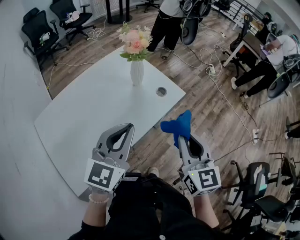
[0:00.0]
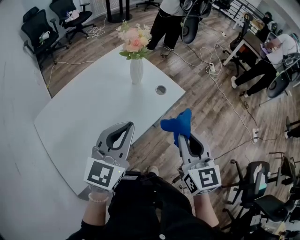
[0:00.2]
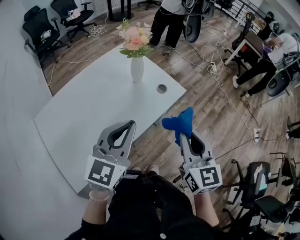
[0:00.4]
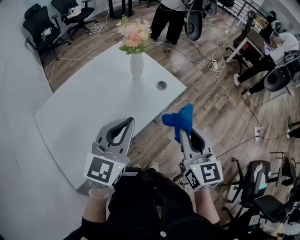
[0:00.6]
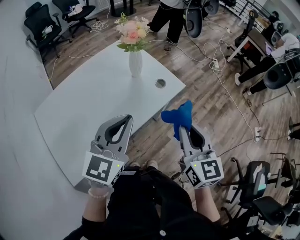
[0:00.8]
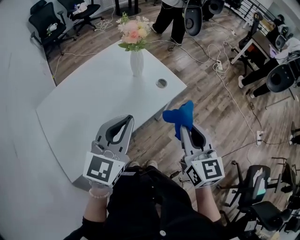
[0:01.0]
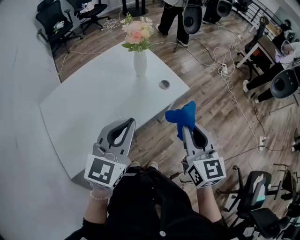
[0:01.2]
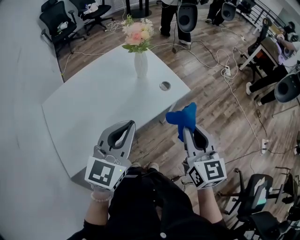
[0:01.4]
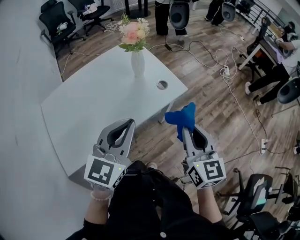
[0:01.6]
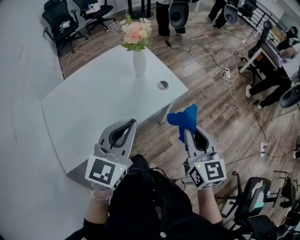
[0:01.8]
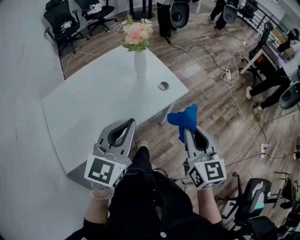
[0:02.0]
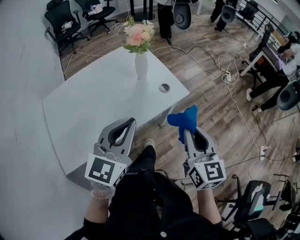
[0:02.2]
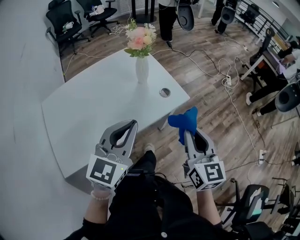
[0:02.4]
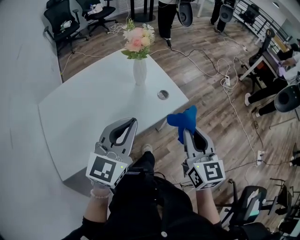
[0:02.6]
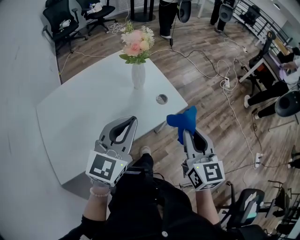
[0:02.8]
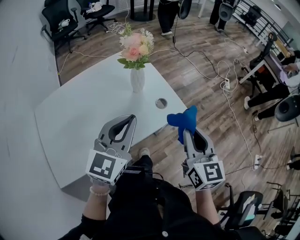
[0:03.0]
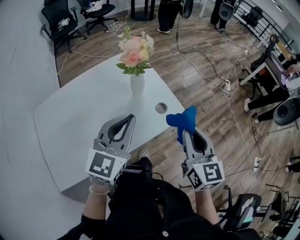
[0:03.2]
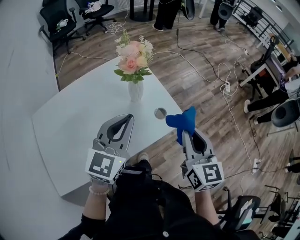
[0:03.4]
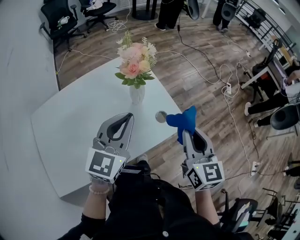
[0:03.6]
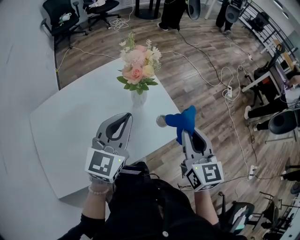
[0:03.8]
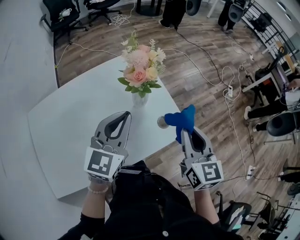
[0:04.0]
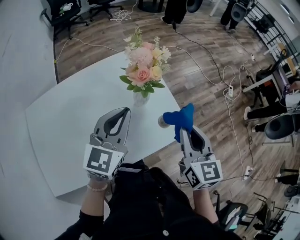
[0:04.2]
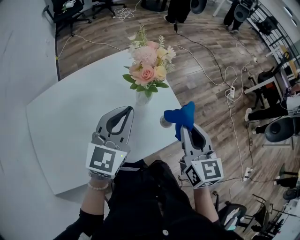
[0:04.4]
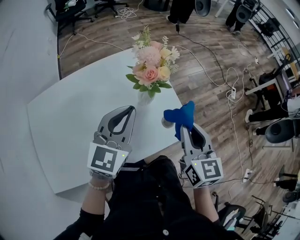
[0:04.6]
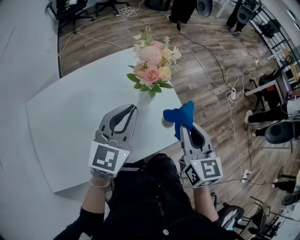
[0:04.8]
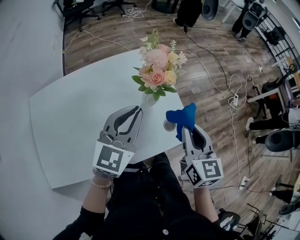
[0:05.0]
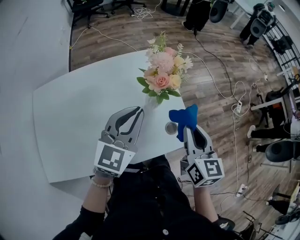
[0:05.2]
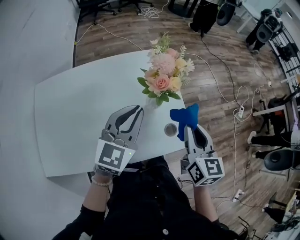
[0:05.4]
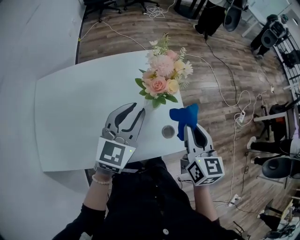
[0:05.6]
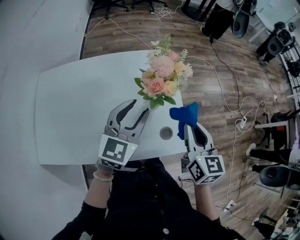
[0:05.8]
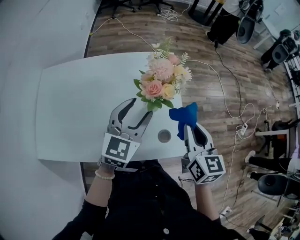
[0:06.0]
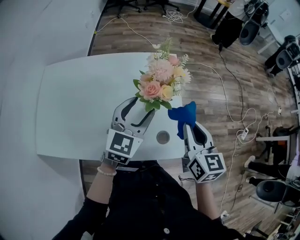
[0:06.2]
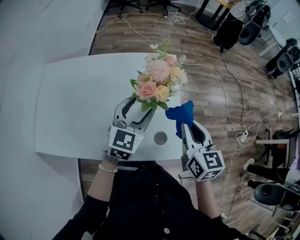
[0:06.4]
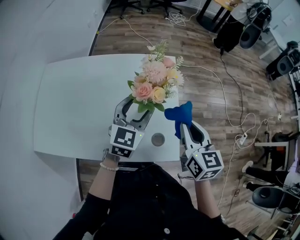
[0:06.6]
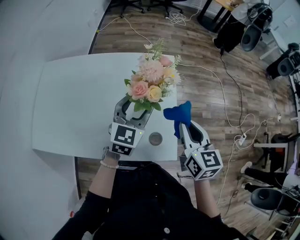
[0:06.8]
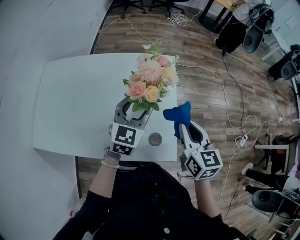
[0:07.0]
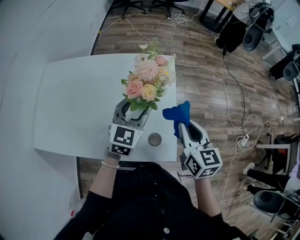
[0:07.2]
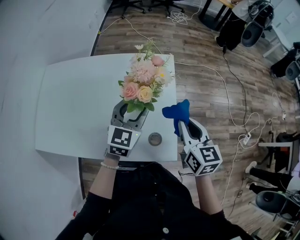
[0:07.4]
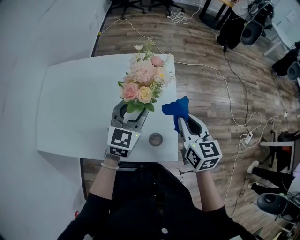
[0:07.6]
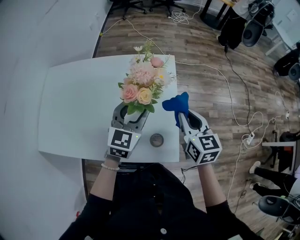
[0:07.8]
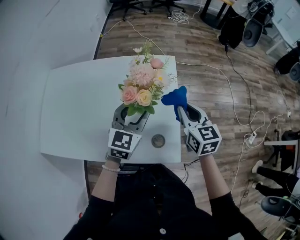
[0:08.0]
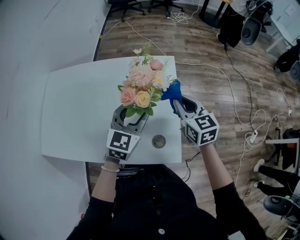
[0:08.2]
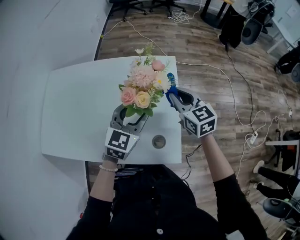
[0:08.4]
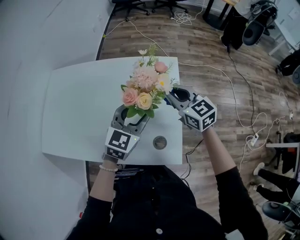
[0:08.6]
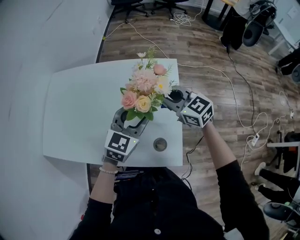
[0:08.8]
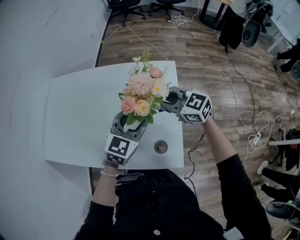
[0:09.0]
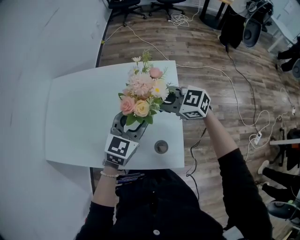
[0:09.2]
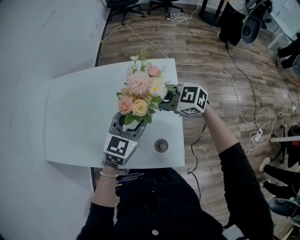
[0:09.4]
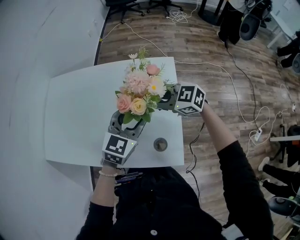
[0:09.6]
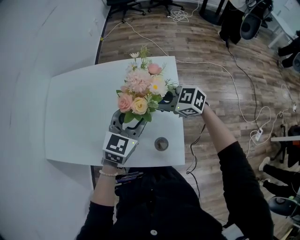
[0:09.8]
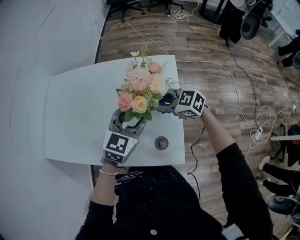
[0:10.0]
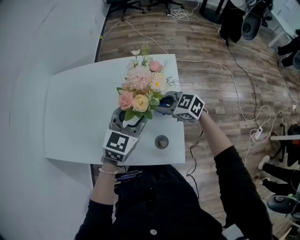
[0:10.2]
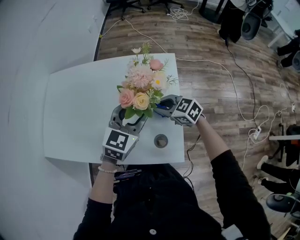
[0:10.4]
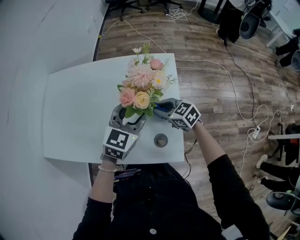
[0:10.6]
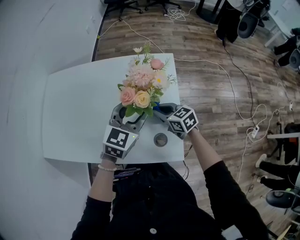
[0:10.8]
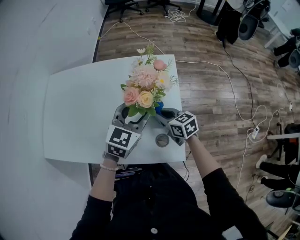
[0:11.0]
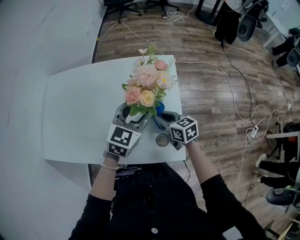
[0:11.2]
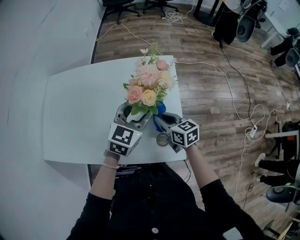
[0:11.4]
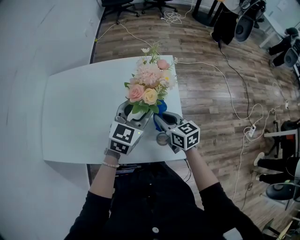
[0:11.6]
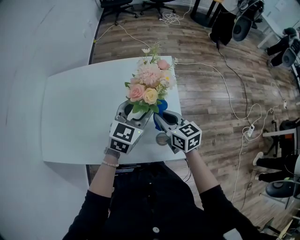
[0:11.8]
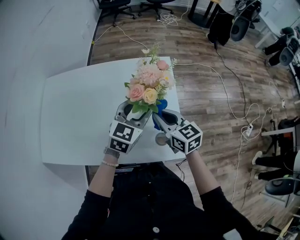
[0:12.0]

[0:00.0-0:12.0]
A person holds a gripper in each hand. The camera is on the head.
0:00.0 to 0:01.6: The two grippers go some 5 cm to the right.
0:01.6 to 0:03.0: The grippers both shift forward by approximately 10 cm.
0:03.0 to 0:04.4: Both grippers travel together forward, about 15 cm.
0:04.4 to 0:06.0: The right gripper moves forward, roughly 10 cm. Meanwhile the left gripper moves forward, roughly 5 cm, and opens its fingers.
0:06.0 to 0:07.6: The left gripper changes place by approximately 5 cm; the right gripper ends up approximately 5 cm from where it was.
0:07.6 to 0:09.0: The right gripper is displaced to the left and forward by about 15 cm, and turns by roughly 50 degrees.
0:09.0 to 0:10.4: The right gripper moves downward, some 10 cm.
0:10.4 to 0:12.0: The right gripper travels upward by about 10 cm, and swivels approximately 40 degrees.

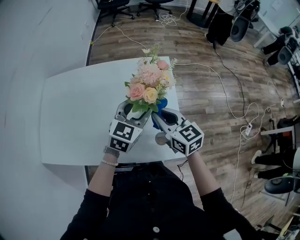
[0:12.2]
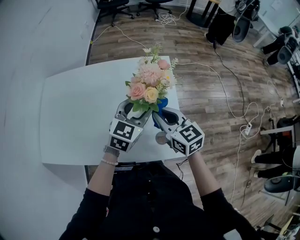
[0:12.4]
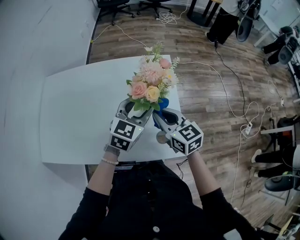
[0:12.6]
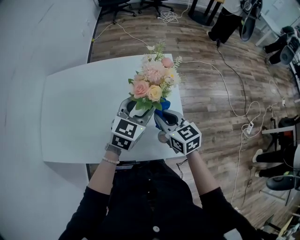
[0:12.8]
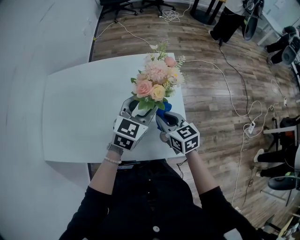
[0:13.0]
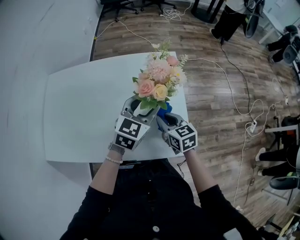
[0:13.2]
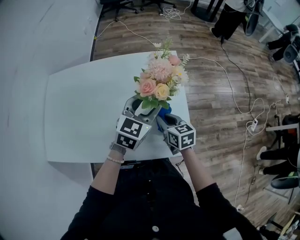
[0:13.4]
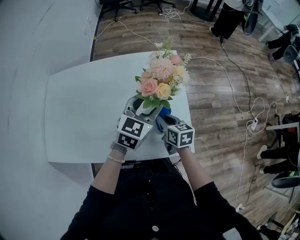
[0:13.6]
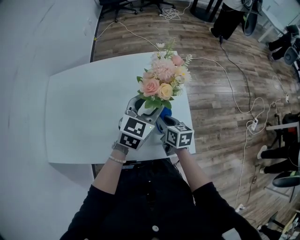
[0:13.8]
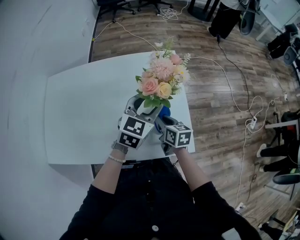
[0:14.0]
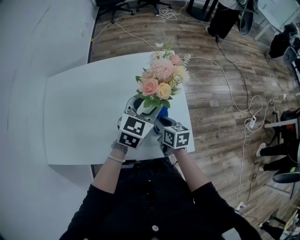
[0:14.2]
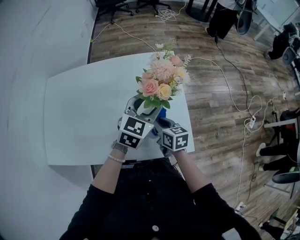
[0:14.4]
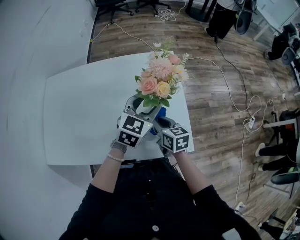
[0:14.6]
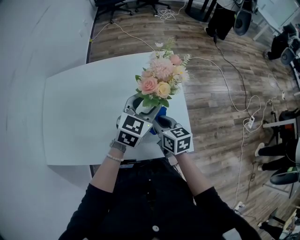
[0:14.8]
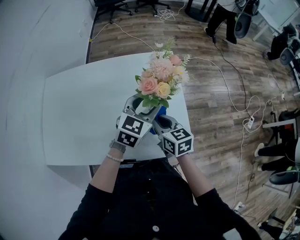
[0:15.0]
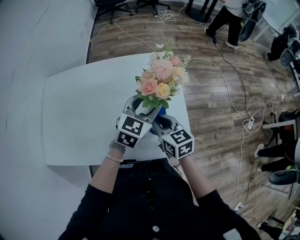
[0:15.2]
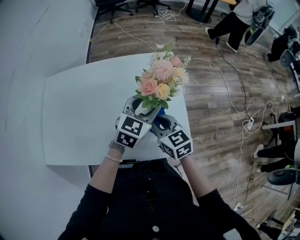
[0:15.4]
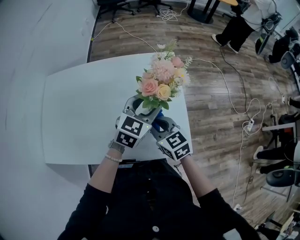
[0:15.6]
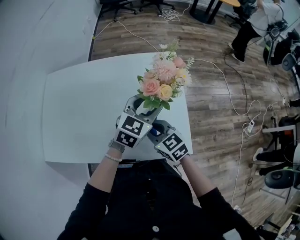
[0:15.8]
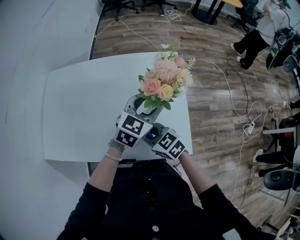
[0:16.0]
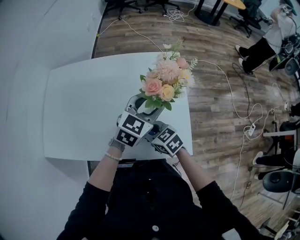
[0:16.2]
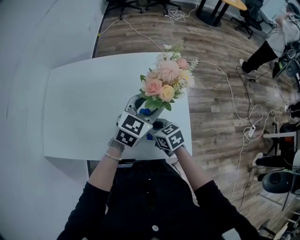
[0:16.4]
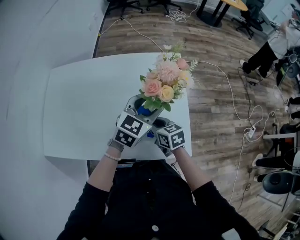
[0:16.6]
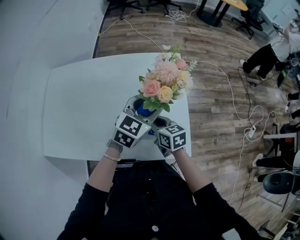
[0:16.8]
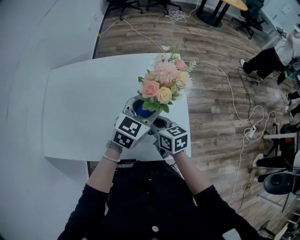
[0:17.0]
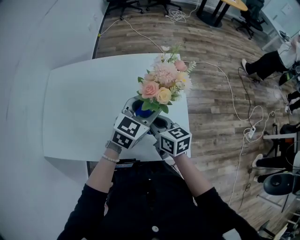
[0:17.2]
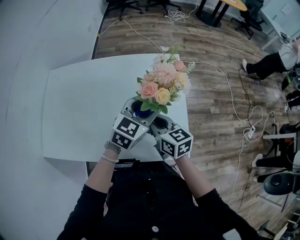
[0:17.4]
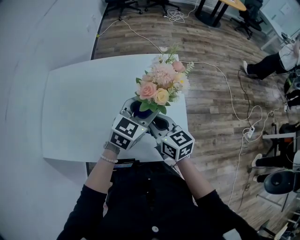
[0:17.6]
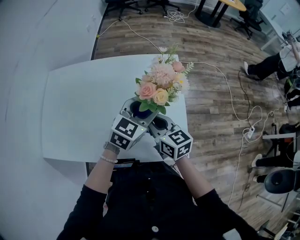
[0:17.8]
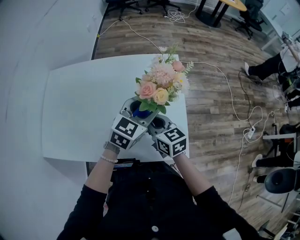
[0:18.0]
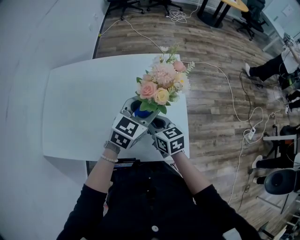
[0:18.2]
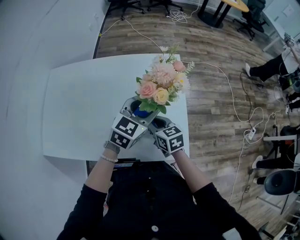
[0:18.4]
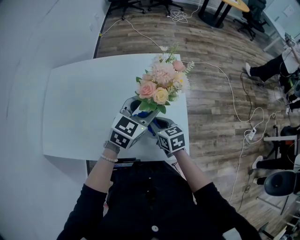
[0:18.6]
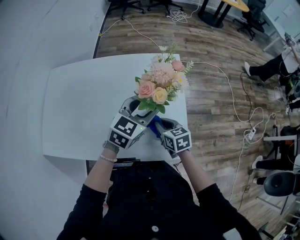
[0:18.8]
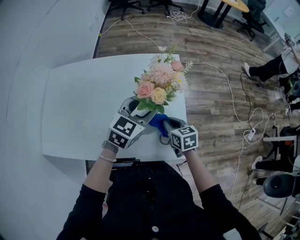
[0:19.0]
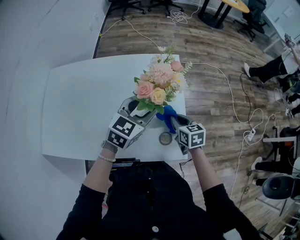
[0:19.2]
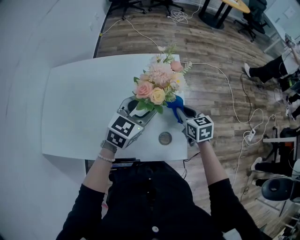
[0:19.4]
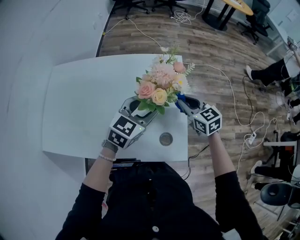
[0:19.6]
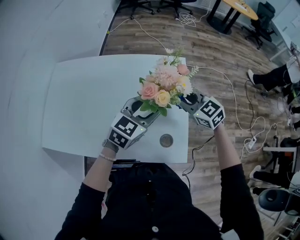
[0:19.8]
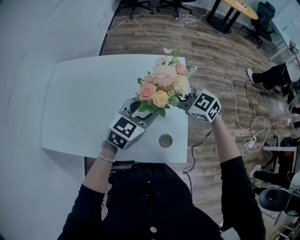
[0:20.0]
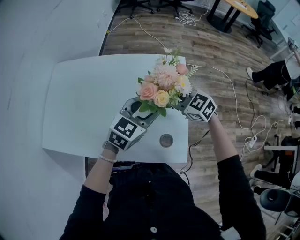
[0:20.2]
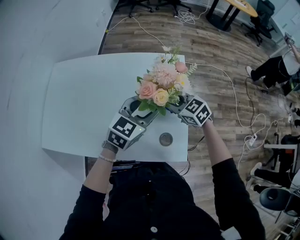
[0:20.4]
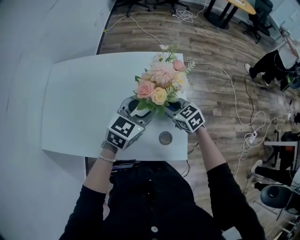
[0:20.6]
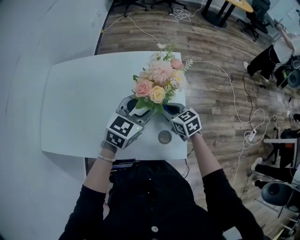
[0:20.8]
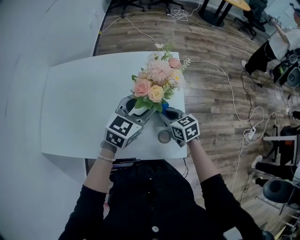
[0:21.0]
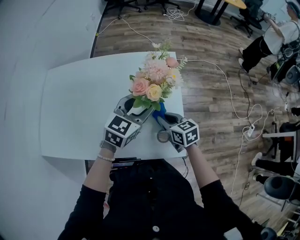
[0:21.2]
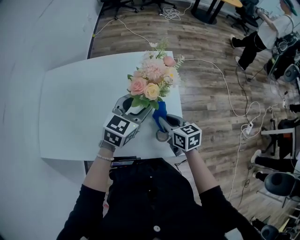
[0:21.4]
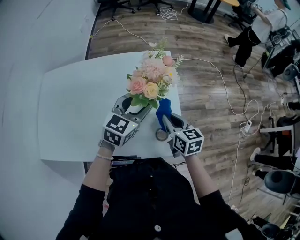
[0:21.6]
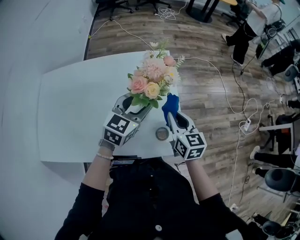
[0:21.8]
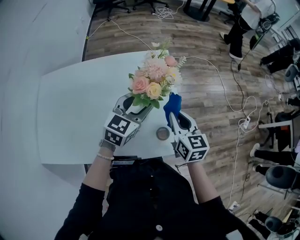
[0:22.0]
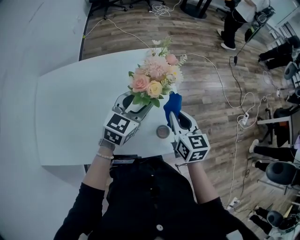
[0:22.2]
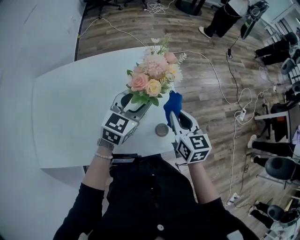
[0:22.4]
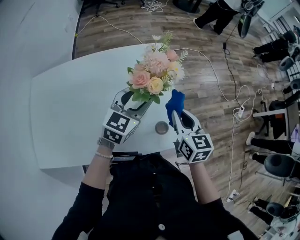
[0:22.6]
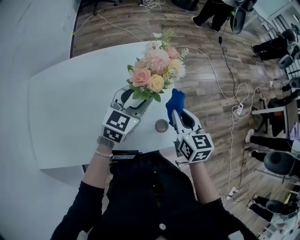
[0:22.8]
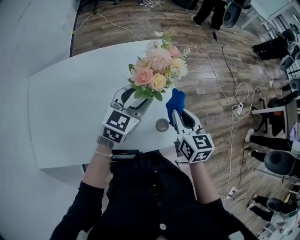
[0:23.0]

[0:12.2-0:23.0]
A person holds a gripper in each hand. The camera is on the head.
0:12.2 to 0:13.8: The right gripper travels downward by approximately 15 cm, and rotates about 30 degrees.
0:13.8 to 0:15.2: The right gripper is displaced upward by about 10 cm, and turns by approximately 20 degrees.
0:15.2 to 0:16.8: The right gripper is displaced downward by roughly 5 cm.
0:16.8 to 0:18.4: The right gripper travels upward and back again, some 10 cm each way.
0:18.4 to 0:20.0: The right gripper goes approximately 15 cm upward, forward and to the right, and rotates some 40 degrees.
0:20.0 to 0:21.4: The right gripper shifts approximately 10 cm backward and downward, and twists approximately 40 degrees clockwise, seen from behind.
0:21.4 to 0:23.0: The right gripper heads upward, covering some 10 cm, and rotates roughly 30 degrees.

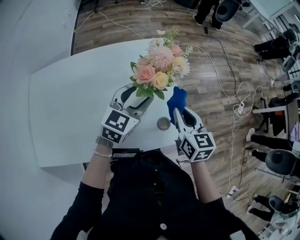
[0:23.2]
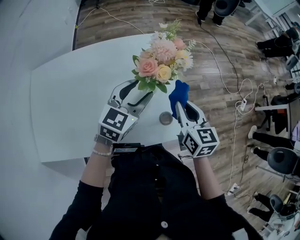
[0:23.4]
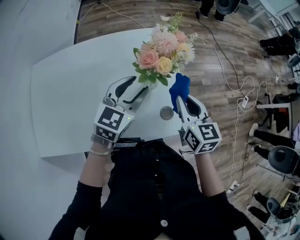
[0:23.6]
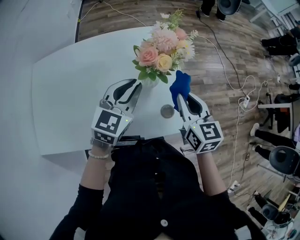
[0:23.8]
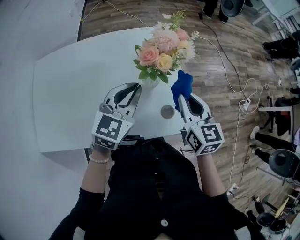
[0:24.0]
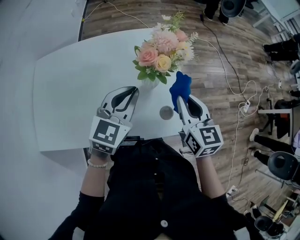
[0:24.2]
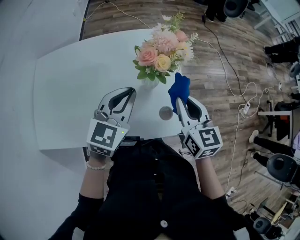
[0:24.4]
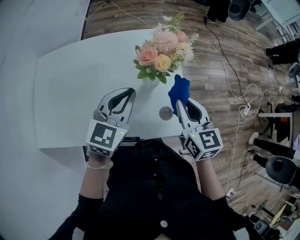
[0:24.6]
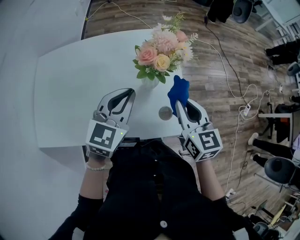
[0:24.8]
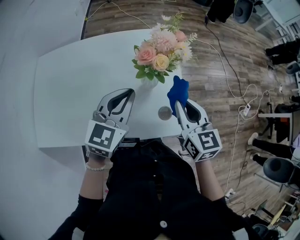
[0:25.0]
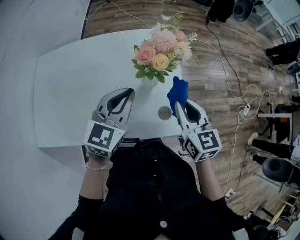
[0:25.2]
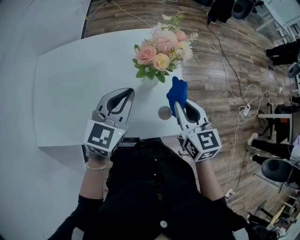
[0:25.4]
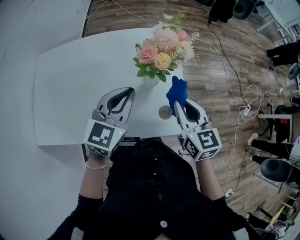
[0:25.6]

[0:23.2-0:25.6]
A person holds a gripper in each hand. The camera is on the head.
0:23.2 to 0:24.4: The left gripper shifts approximately 5 cm backward, and closes.
0:24.4 to 0:25.6: The grippers stay close to where they were, moving slightly.
